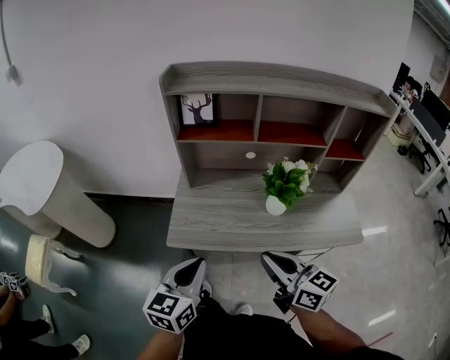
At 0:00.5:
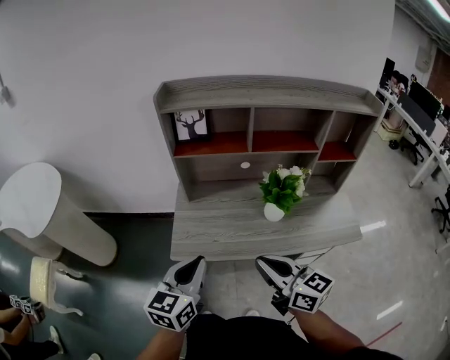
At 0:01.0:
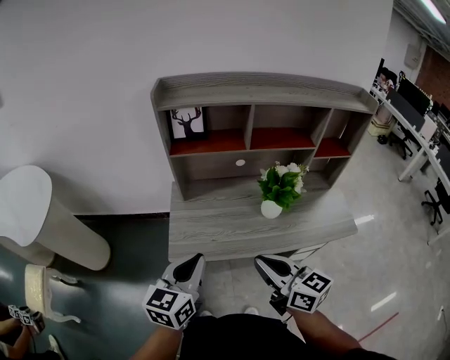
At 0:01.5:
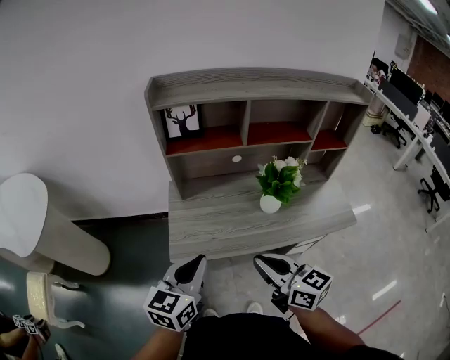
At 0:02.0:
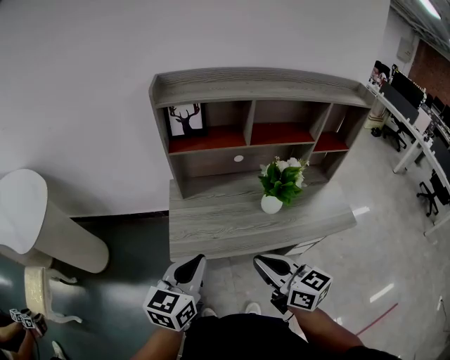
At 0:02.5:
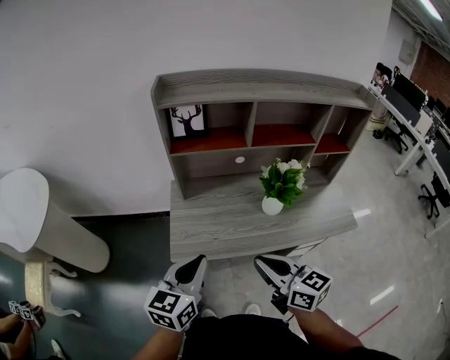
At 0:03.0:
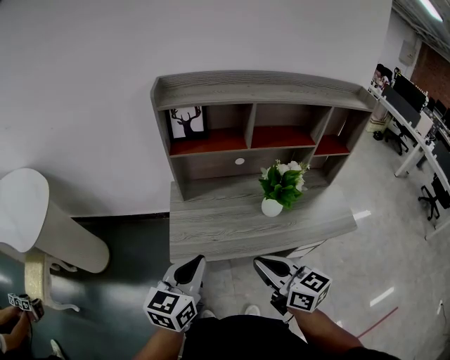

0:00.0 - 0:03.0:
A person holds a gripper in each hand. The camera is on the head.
0:00.0 - 0:01.5: The right gripper moves to the left, some 5 cm, while the left gripper shifts by about 5 cm.
0:01.5 - 0:03.0: Neither gripper changes place.

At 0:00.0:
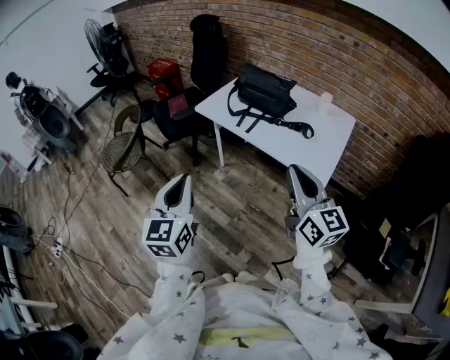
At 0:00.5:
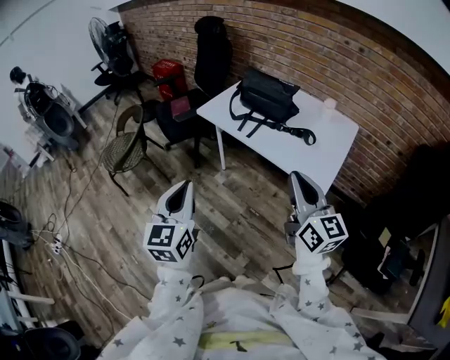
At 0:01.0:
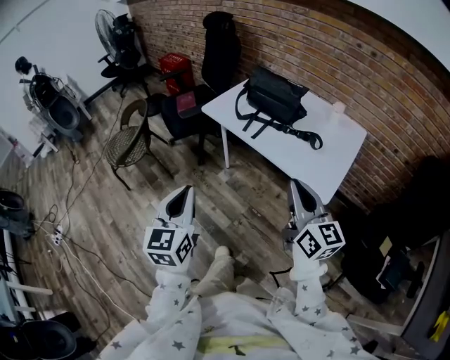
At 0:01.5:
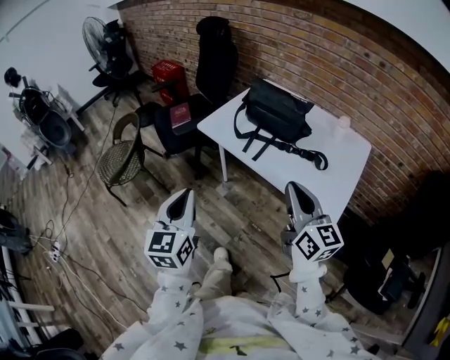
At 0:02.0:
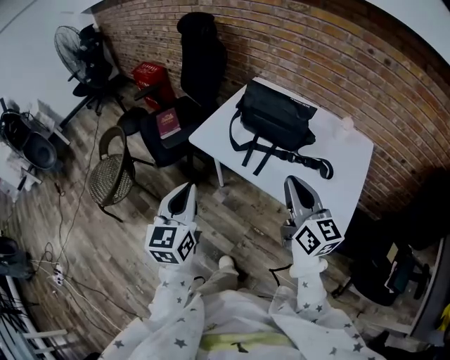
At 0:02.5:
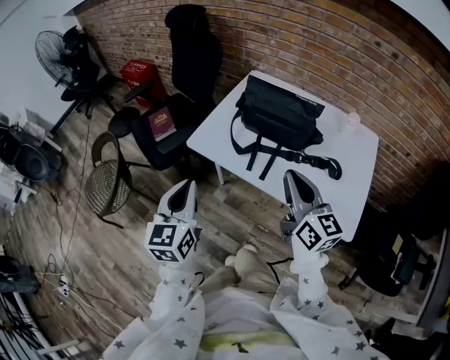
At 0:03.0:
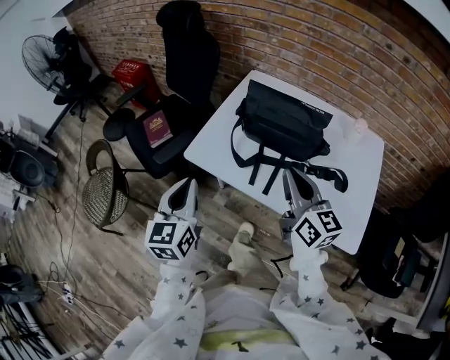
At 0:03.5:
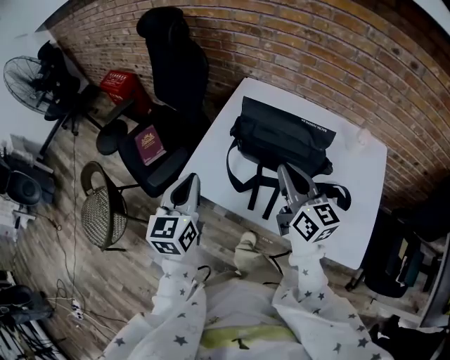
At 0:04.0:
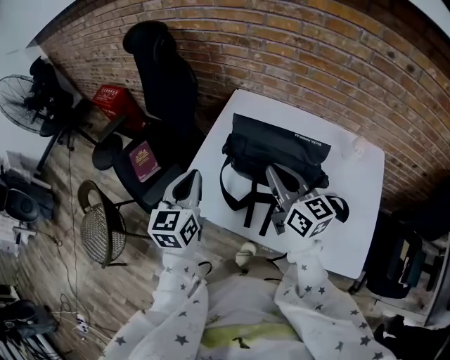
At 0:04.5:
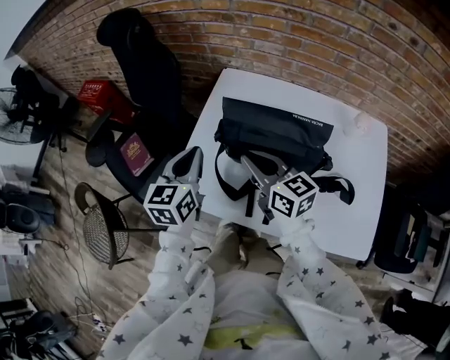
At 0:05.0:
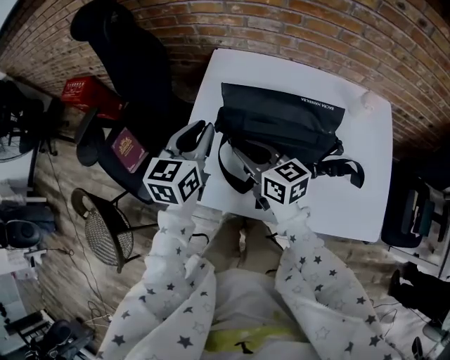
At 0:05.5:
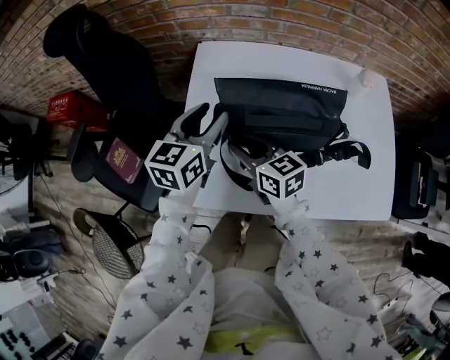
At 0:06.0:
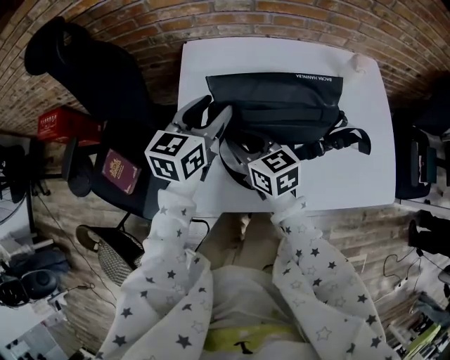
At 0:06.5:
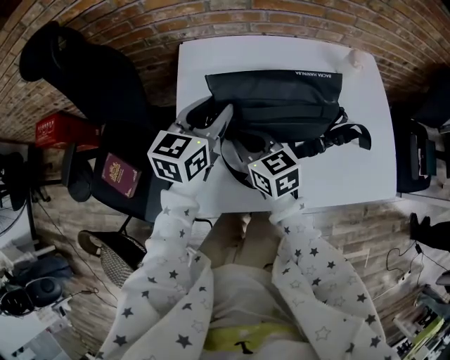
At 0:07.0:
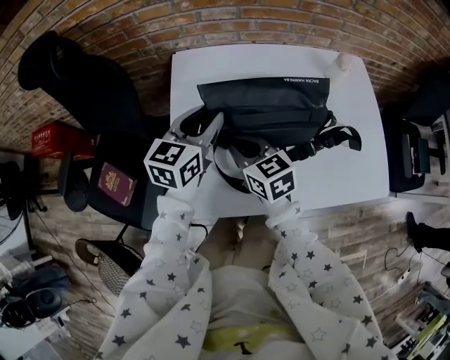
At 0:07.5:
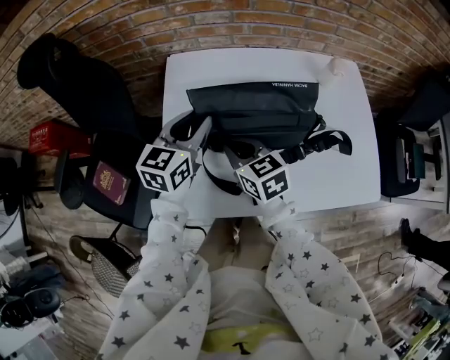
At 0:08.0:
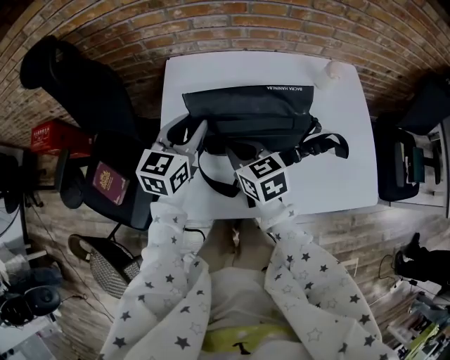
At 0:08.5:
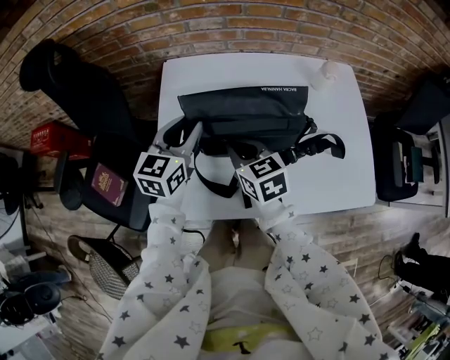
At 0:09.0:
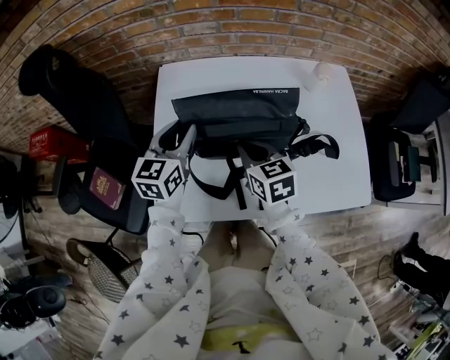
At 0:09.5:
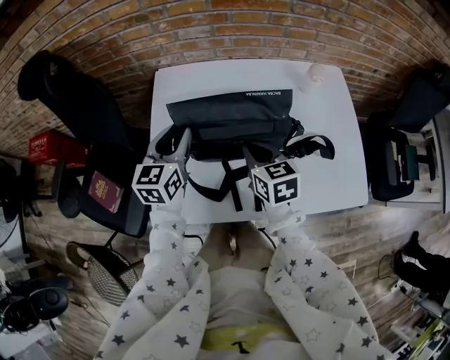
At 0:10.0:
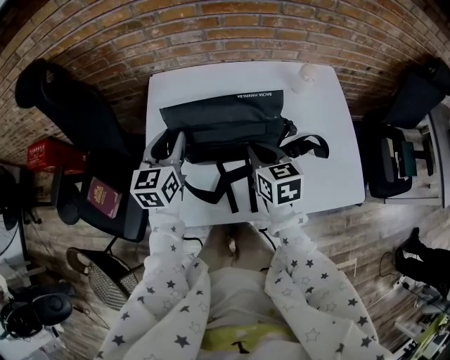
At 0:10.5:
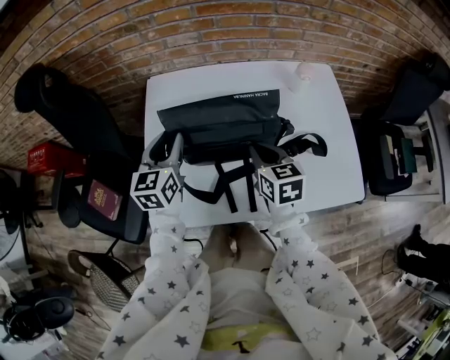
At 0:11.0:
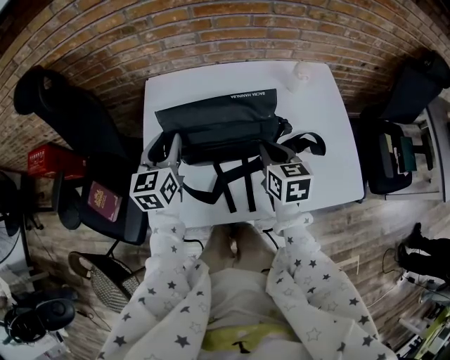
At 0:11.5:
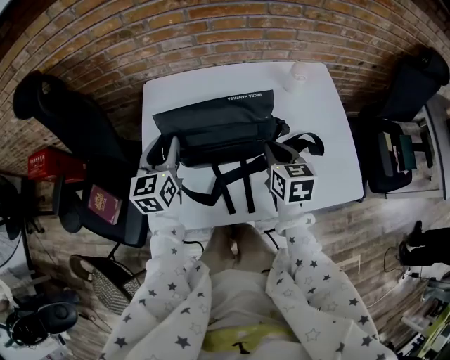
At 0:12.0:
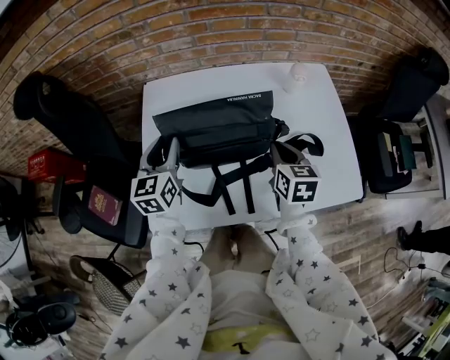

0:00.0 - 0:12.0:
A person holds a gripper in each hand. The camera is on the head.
0:00.0 - 0:02.0: Both grippers travel together forward, roughly 25 cm.
0:02.0 - 0:04.0: The two grippers go approximately 30 cm forward.
0:04.0 - 0:06.0: The left gripper shifts by roughly 20 cm, swivels some 40 degrees, and opens up, while the right gripper is displaced downward by approximately 15 cm, turns by roughly 20 degrees, and opens its fingers.
0:06.0 - 0:08.0: The left gripper closes its fingers.
0:08.0 - 0:10.0: The right gripper travels to the right by roughly 15 cm.
0:10.0 - 0:12.0: The right gripper is displaced to the right by approximately 10 cm.

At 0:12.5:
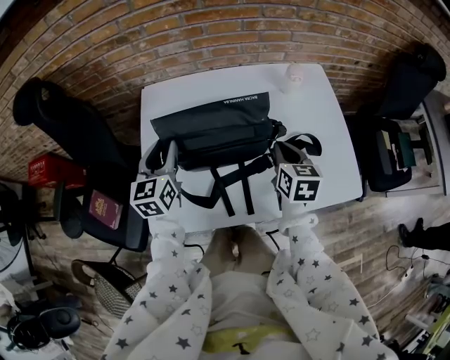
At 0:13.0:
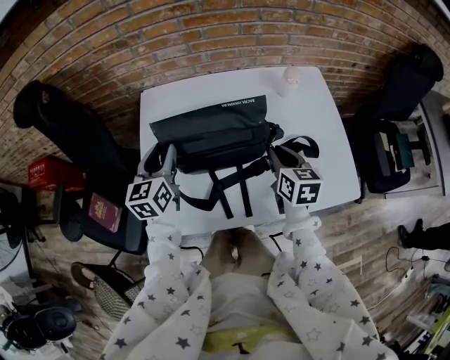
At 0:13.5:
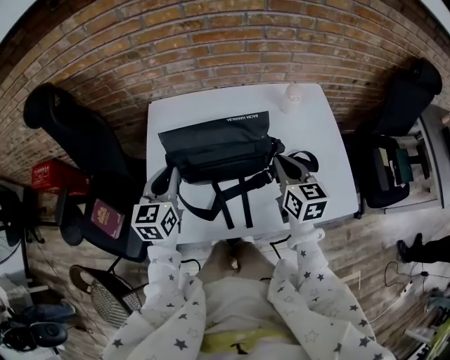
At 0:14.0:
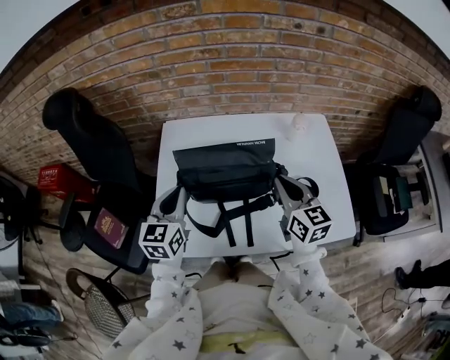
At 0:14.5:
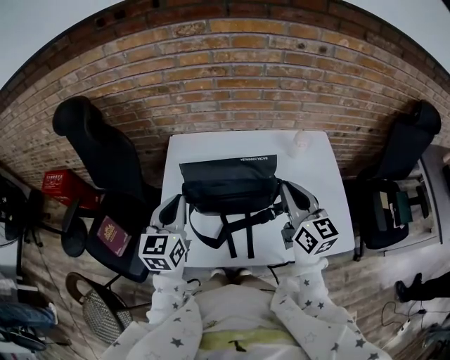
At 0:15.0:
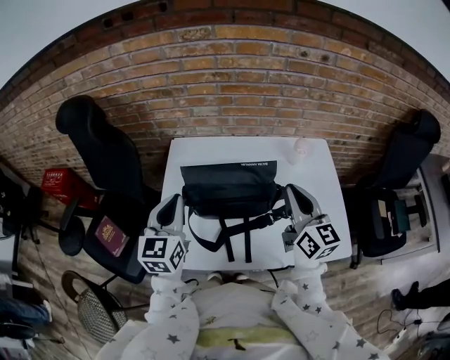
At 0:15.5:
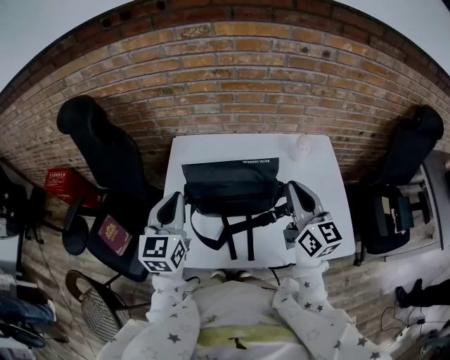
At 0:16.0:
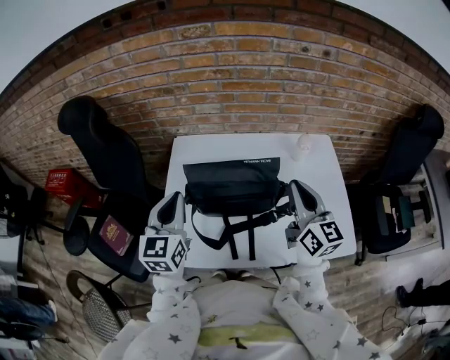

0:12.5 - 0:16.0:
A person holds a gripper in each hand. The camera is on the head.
0:12.5 - 0:14.5: The right gripper travels upward by about 15 cm, and points its fingers roughly 30 degrees further upward, while the left gripper heads upward and backward, covering some 10 cm, and closes its fingers.
0:14.5 - 0:16.0: There are only small adjustments of the grippers.
